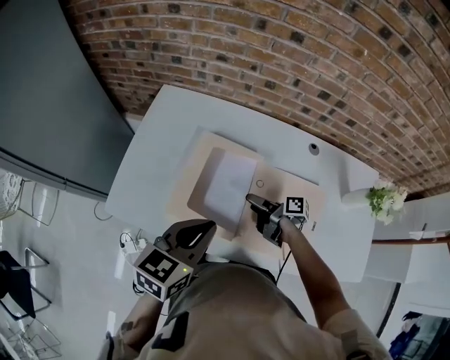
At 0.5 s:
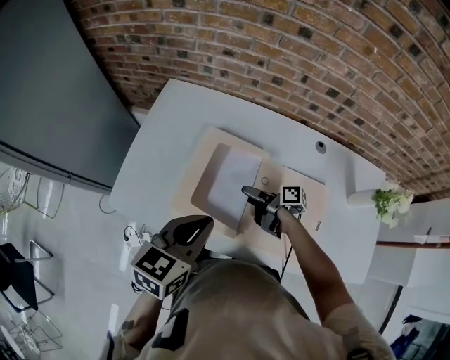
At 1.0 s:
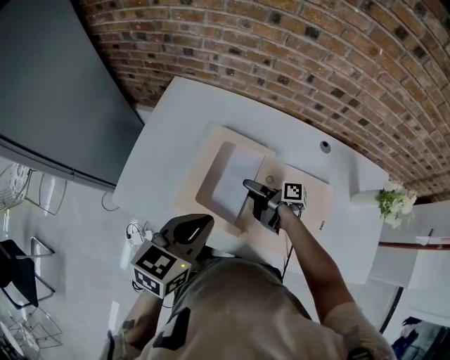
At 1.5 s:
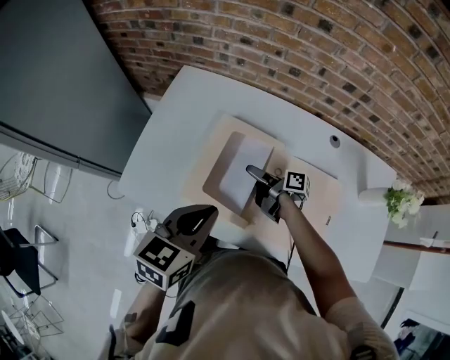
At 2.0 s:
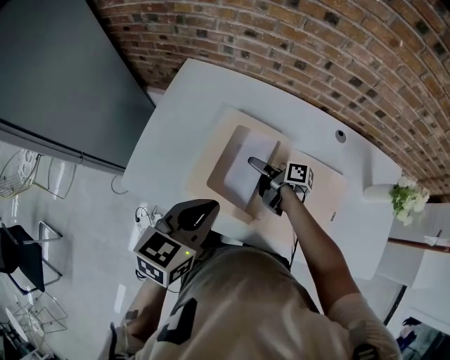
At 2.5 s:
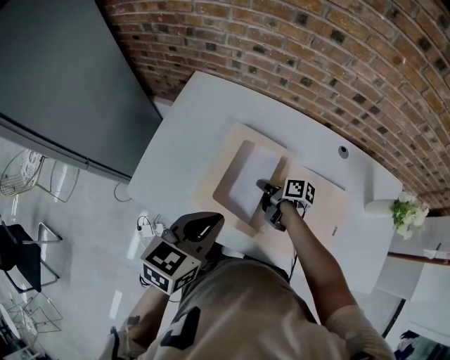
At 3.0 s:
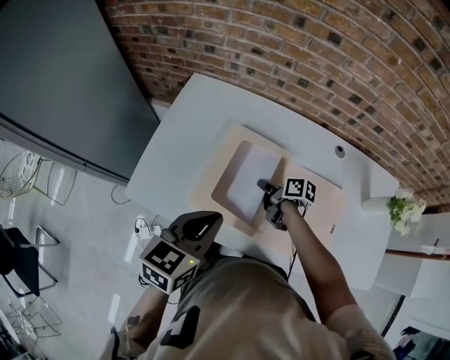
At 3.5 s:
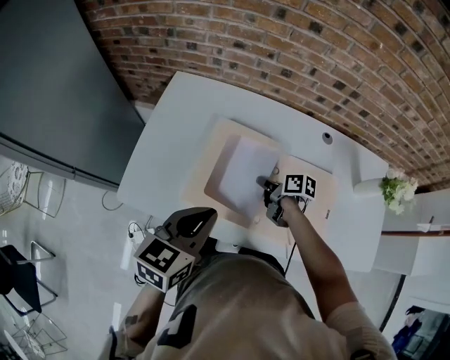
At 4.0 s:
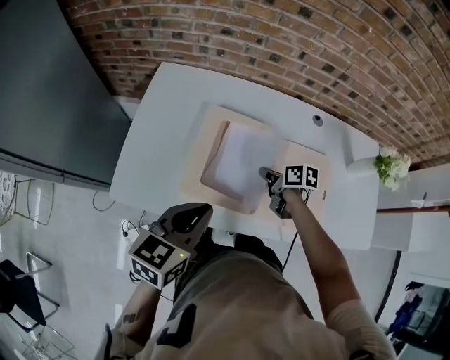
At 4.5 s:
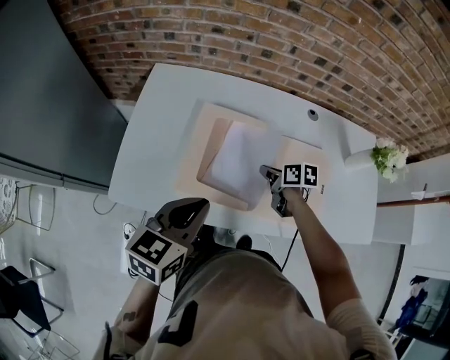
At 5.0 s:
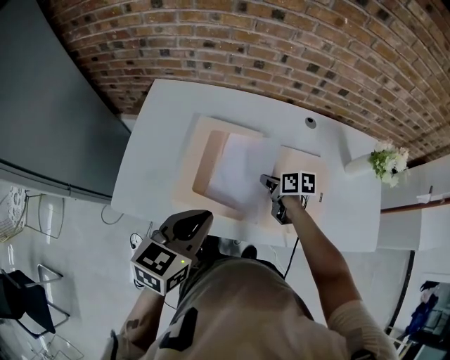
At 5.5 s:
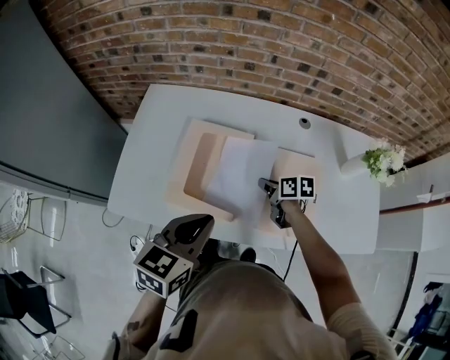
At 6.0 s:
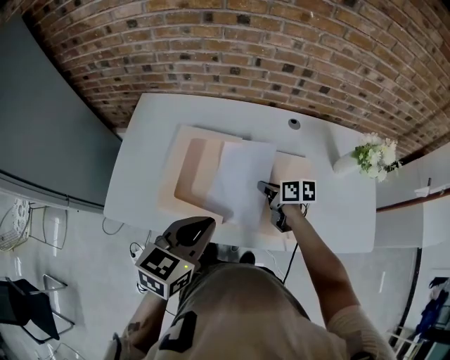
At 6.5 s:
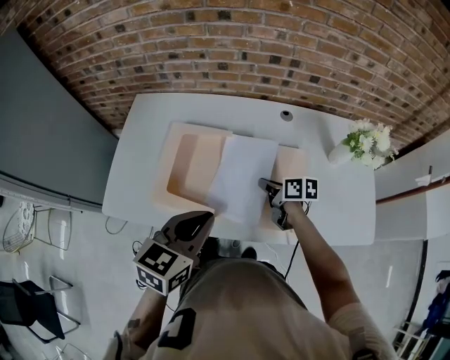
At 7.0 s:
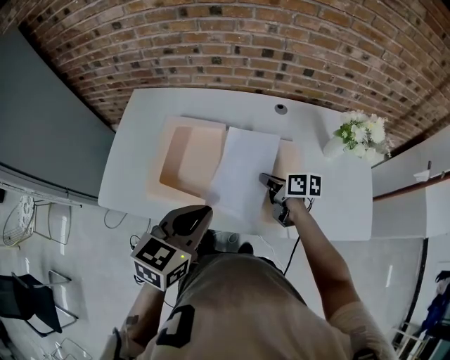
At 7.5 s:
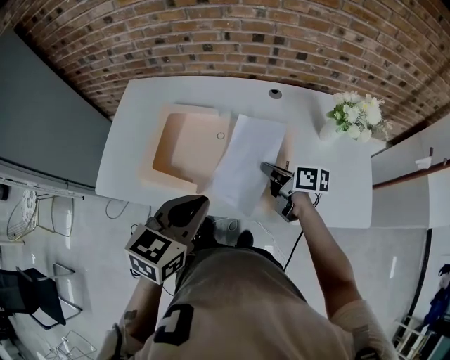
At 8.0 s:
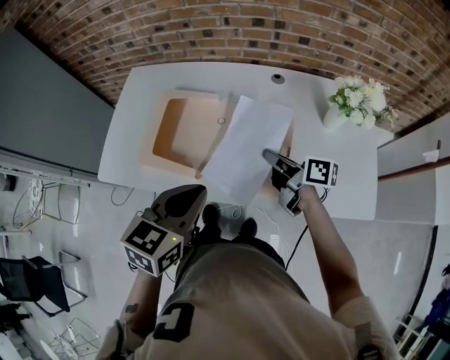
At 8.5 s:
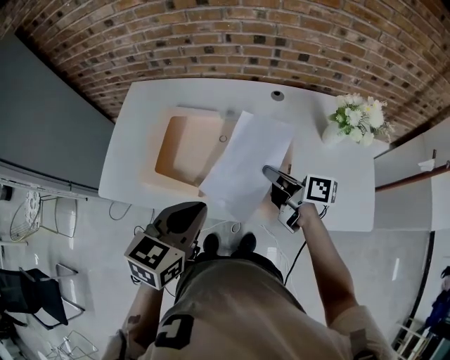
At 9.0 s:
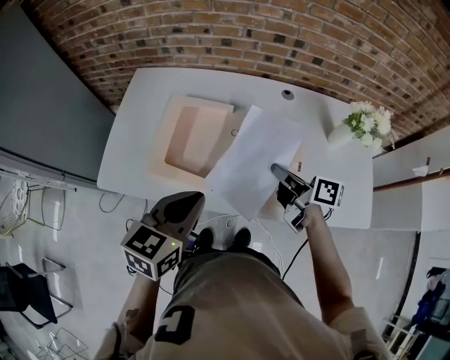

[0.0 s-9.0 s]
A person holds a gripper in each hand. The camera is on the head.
0.0 to 2.0 s: The right gripper is displaced forward and to the left by some 10 cm.
2.0 to 4.5 s: The right gripper heads to the right and backward, covering some 10 cm, changes its angle by about 40 degrees, and closes its fingers.
4.5 to 7.0 s: The left gripper goes approximately 15 cm to the right; the right gripper travels to the right and backward by roughly 15 cm.
7.0 to 9.0 s: The right gripper goes about 10 cm upward. Meanwhile the left gripper changes place by some 5 cm.

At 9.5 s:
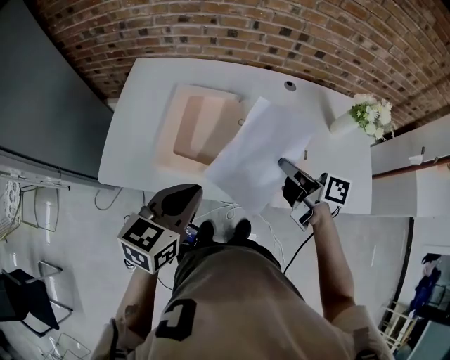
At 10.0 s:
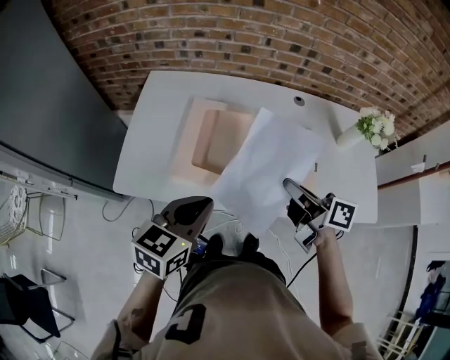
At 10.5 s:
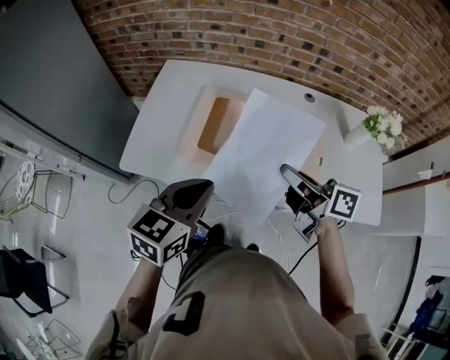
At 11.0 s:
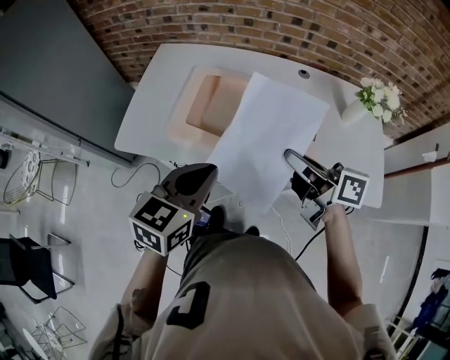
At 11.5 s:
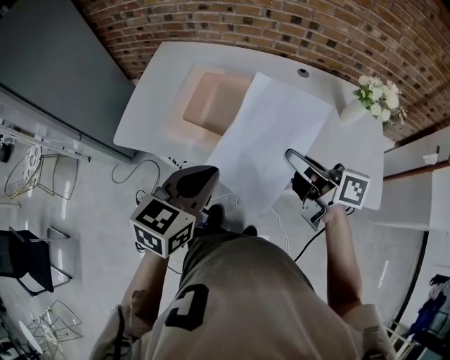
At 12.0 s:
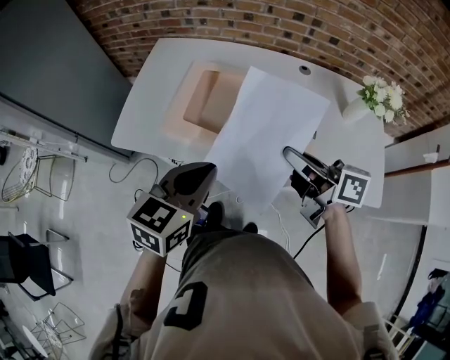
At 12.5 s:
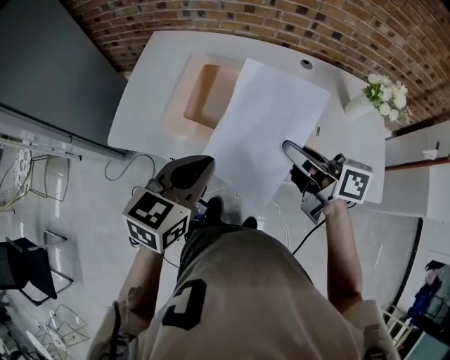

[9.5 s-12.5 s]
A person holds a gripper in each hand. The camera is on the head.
9.5 to 11.0 s: The right gripper goes some 10 cm backward and upward; the left gripper travels backward by approximately 5 cm.
11.0 to 12.5 s: The grippers make only small movements.

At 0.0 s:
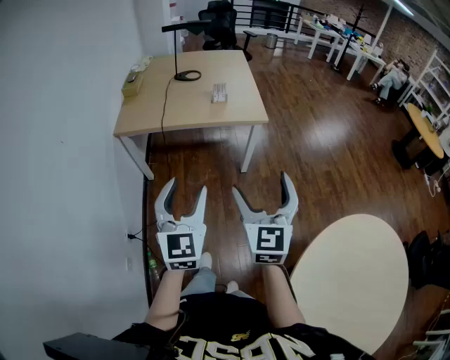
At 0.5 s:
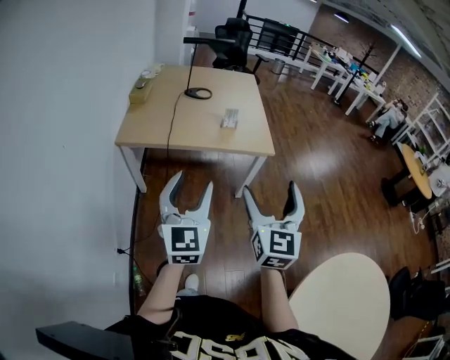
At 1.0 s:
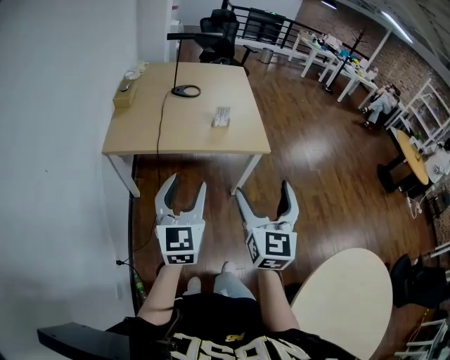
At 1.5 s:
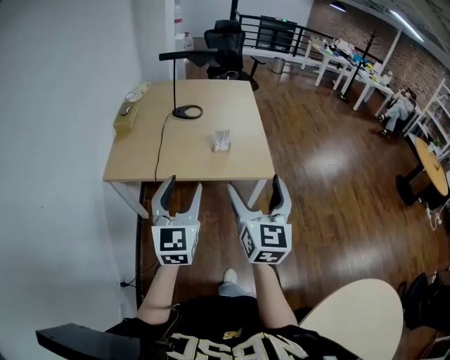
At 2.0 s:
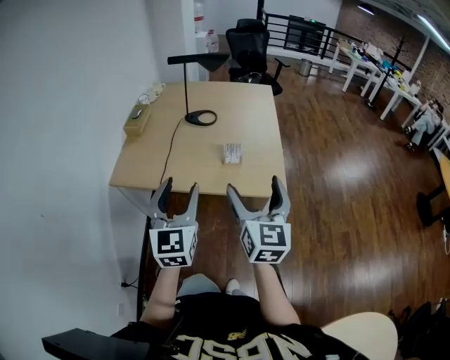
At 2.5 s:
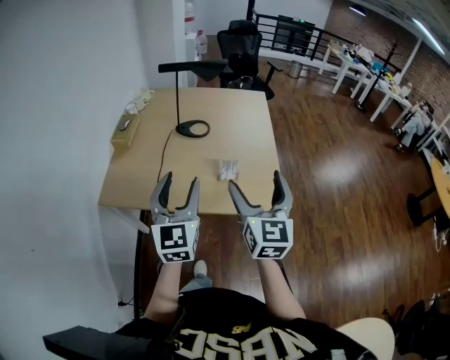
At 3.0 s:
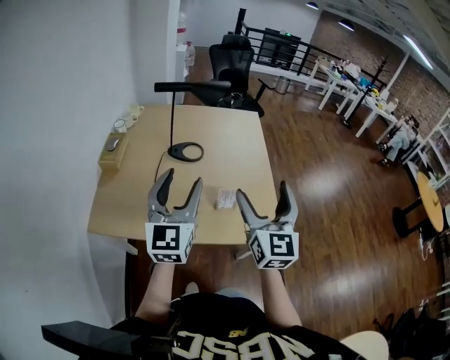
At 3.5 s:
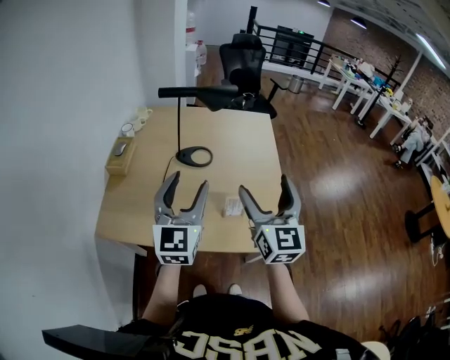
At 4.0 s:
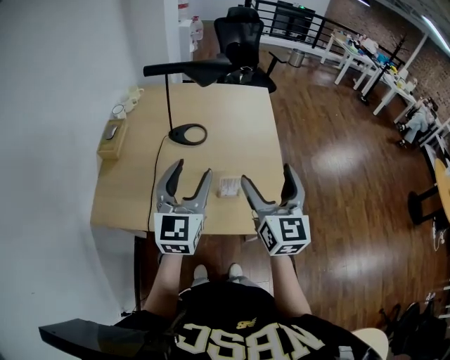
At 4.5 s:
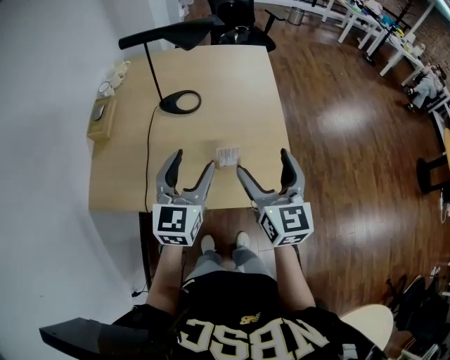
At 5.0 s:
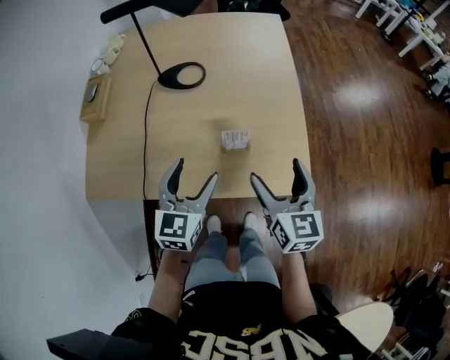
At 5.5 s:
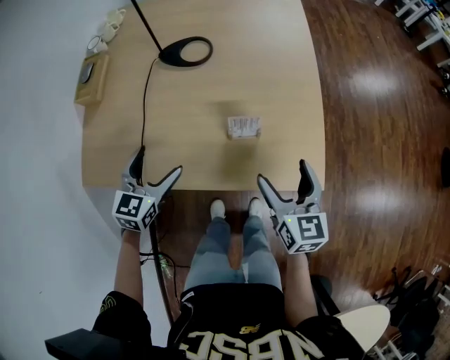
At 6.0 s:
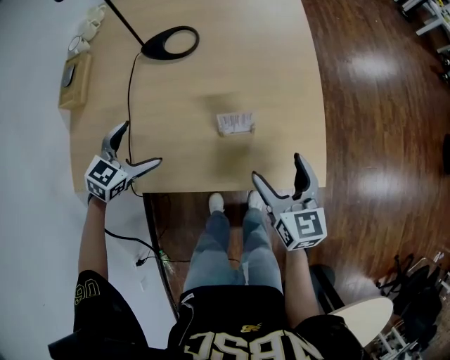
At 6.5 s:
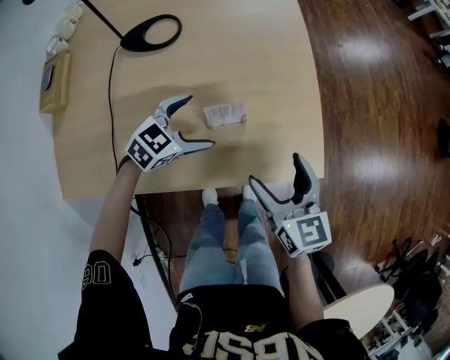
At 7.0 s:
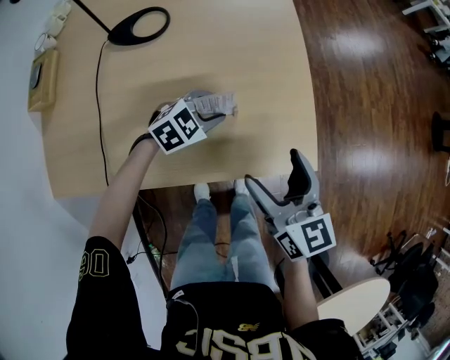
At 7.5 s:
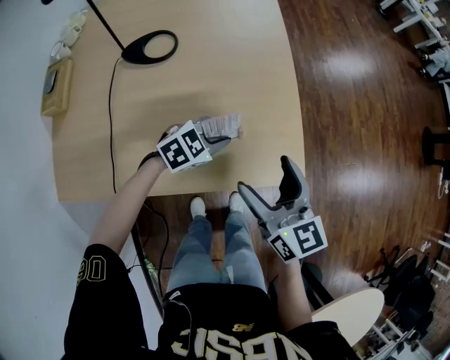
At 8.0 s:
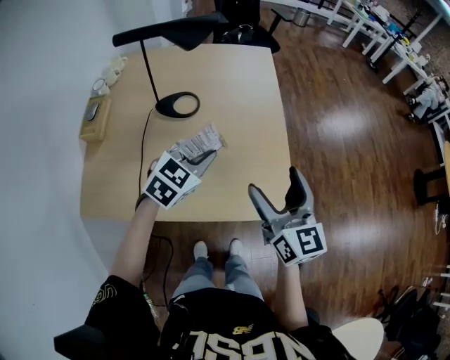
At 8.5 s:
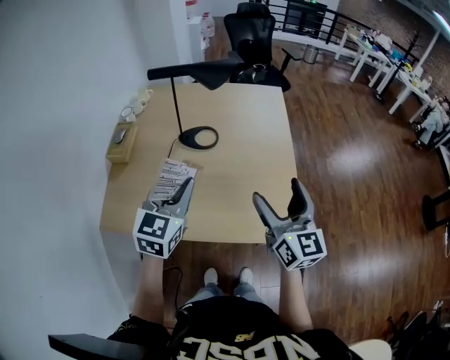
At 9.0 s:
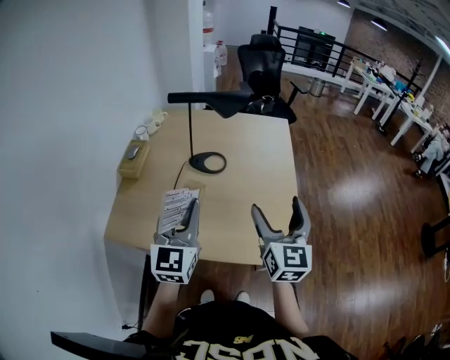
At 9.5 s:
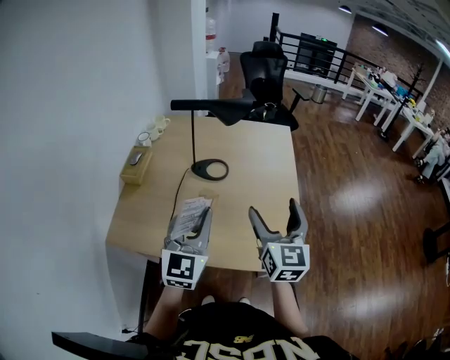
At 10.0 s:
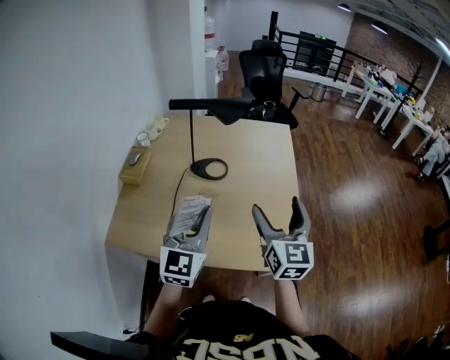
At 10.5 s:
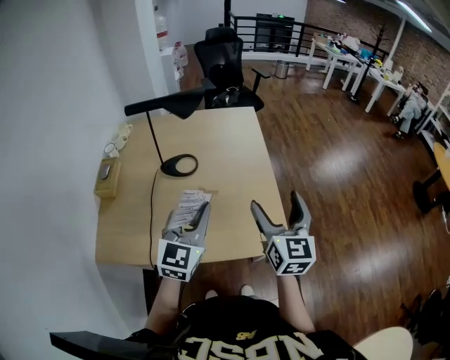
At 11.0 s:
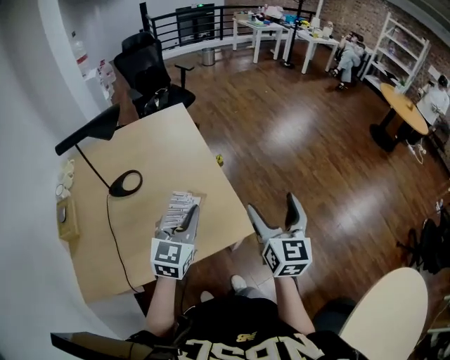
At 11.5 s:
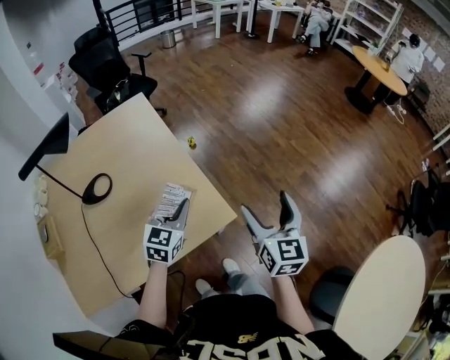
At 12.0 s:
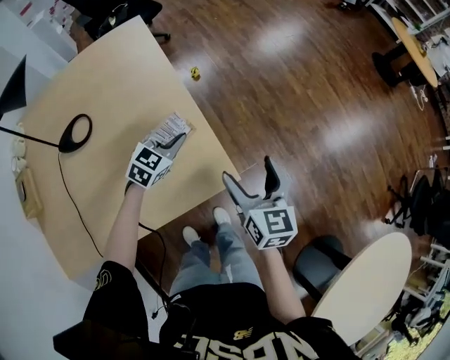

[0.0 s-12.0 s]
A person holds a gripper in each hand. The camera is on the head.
0.0 to 2.0 s: Both grippers travel together forward, about 40 cm. The right gripper rotates roughly 20 degrees.
2.0 to 4.0 s: Both grippers move forward, roughly 25 cm.
4.0 to 6.0 s: The two grippers go about 30 cm downward. The right gripper rotates approximately 30 degrees. Meanwhile the left gripper angles its fingers downward, by approximately 40 degrees, and opens.
6.0 to 8.0 s: The left gripper moves upward, to the right and forward, approximately 25 cm, and closes its fingers, while the right gripper shifts roughly 20 cm upward.
8.0 to 10.0 s: The left gripper moves upward, to the left and backward, some 20 cm, and tilts its fingers approximately 30 degrees upward. Meanwhile the right gripper goes approximately 10 cm upward and to the left.
10.0 to 12.0 s: The left gripper changes place by about 50 cm, and points its fingers about 30 degrees further downward, while the right gripper changes place by roughly 35 cm, and turns by roughly 30 degrees.

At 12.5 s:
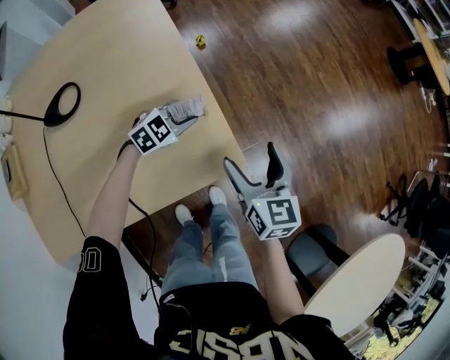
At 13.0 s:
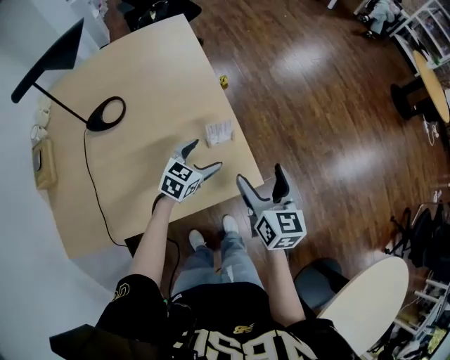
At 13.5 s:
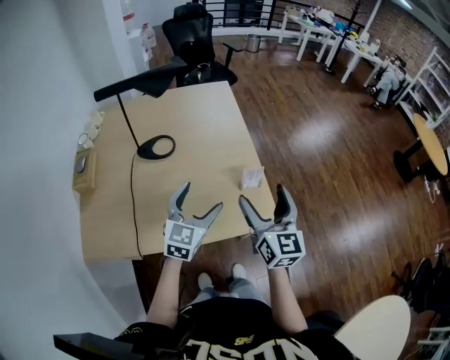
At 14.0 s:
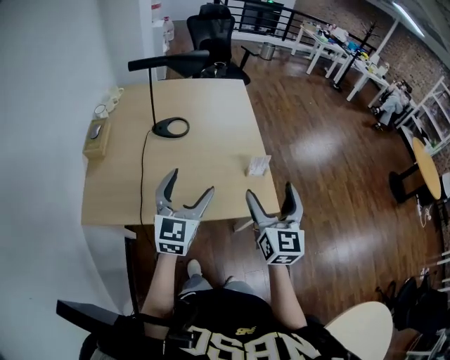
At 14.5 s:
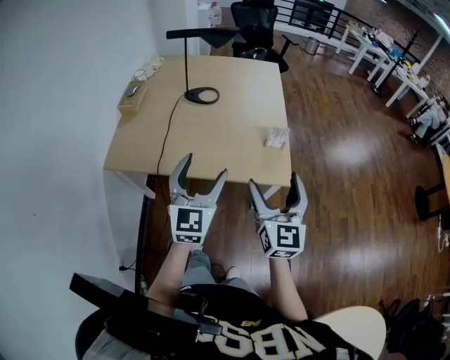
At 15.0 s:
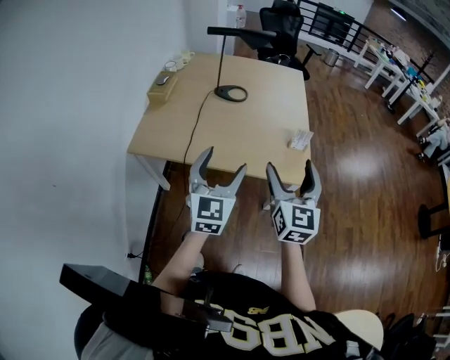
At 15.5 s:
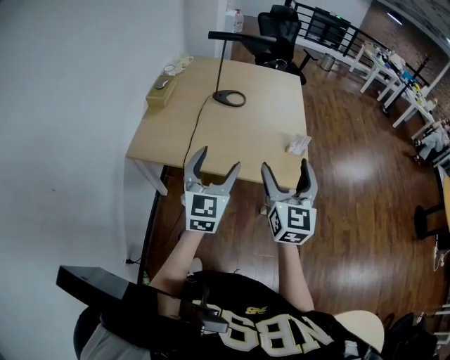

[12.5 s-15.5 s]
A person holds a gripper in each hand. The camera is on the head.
12.5 to 14.0 s: The left gripper moves about 50 cm, tips its fingers upward by roughly 40 degrees, and opens its fingers. Meanwhile the right gripper heads upward, covering roughly 25 cm, and swivels about 30 degrees.
14.0 to 15.5 s: The left gripper travels backward by about 15 cm. The right gripper is displaced backward and to the left by roughly 15 cm.
